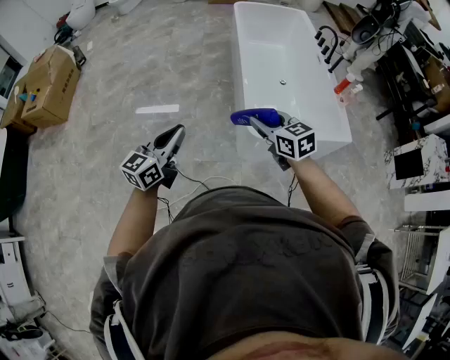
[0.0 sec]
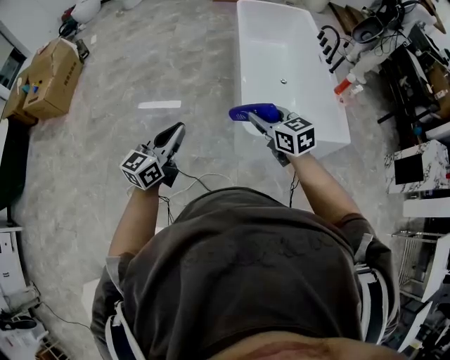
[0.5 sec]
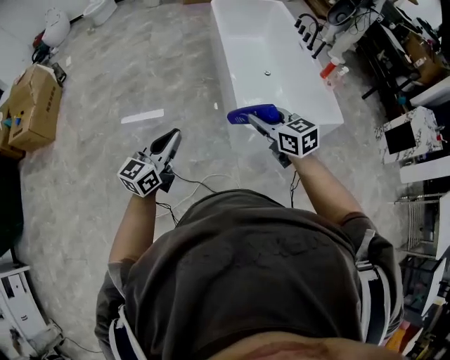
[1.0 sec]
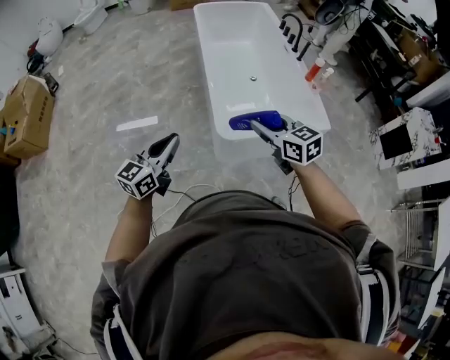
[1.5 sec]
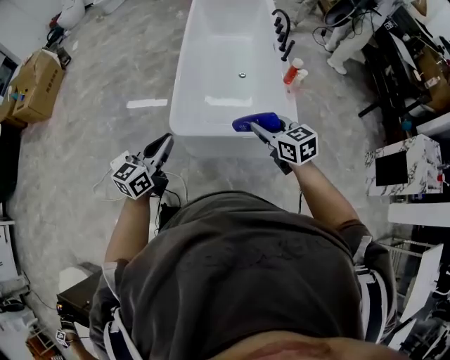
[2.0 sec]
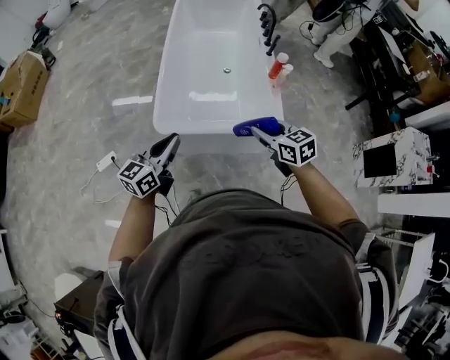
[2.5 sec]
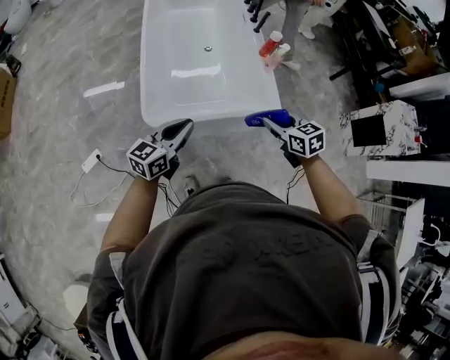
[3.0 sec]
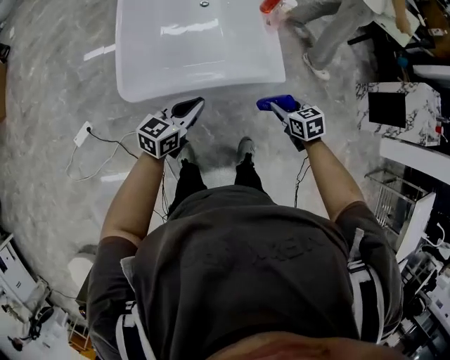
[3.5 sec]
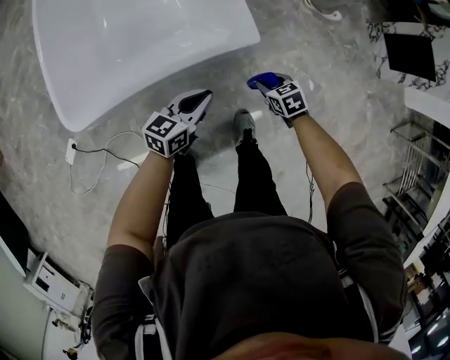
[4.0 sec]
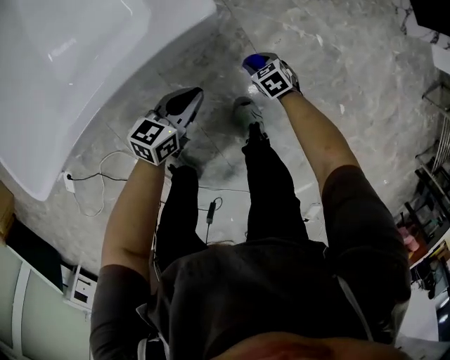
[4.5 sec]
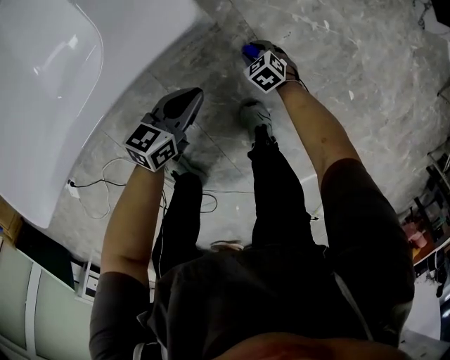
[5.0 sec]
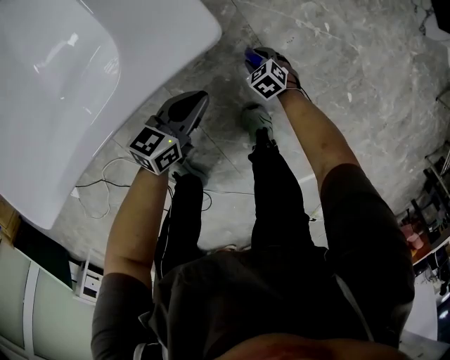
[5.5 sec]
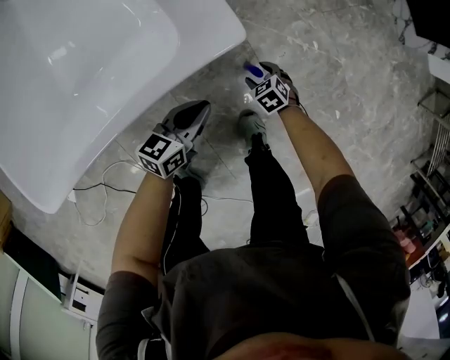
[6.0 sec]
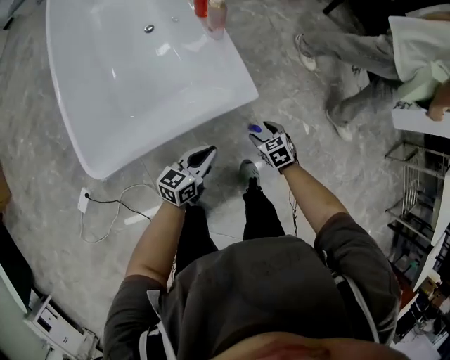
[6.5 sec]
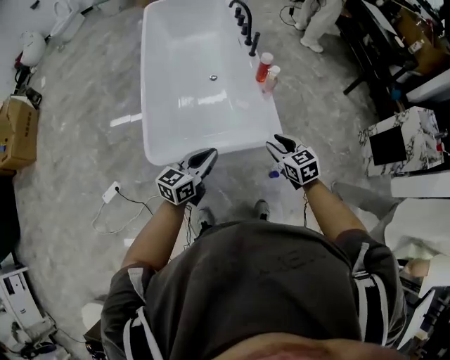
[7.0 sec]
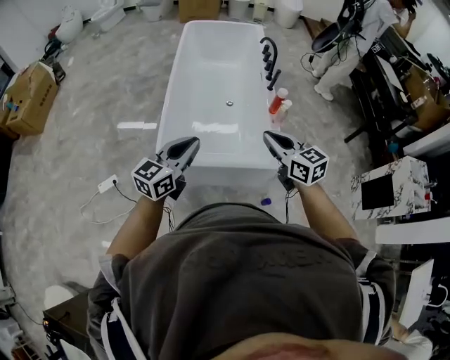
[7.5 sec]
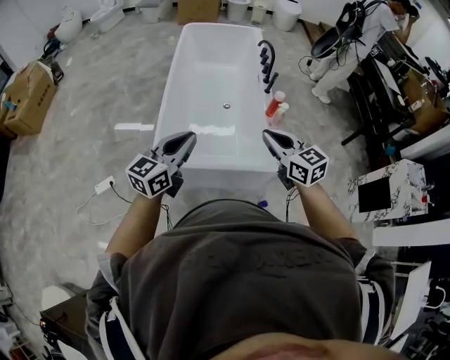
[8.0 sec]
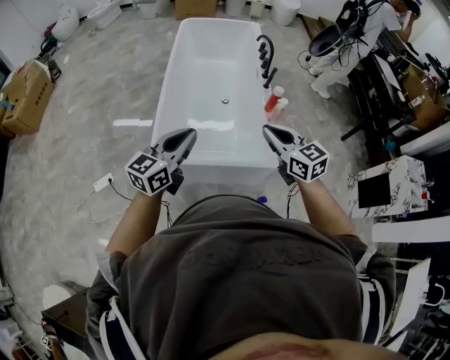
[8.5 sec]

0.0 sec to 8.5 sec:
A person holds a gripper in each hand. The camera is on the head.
0.0 sec to 2.0 sec: Both grippers are carried to the right, about 50 cm.
2.0 sec to 4.0 sec: Both grippers travel together downward, some 50 cm. The right gripper angles its fingers downward, by some 30 degrees, while the left gripper swivels approximately 40 degrees.
4.0 sec to 6.5 sec: The right gripper moves approximately 40 cm downward and comes back, and opens. The left gripper reaches approximately 35 cm downward, then returns.
6.5 sec to 8.5 sec: Both grippers move upward, approximately 50 cm. The right gripper points its fingers approximately 40 degrees further upward, and closes up, while the left gripper rotates some 40 degrees.

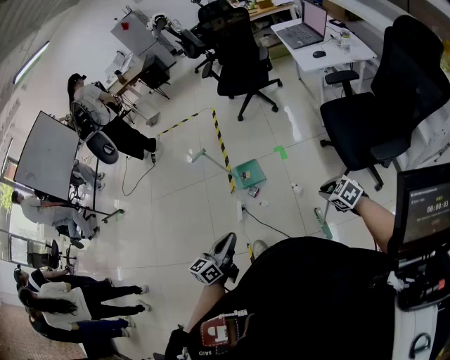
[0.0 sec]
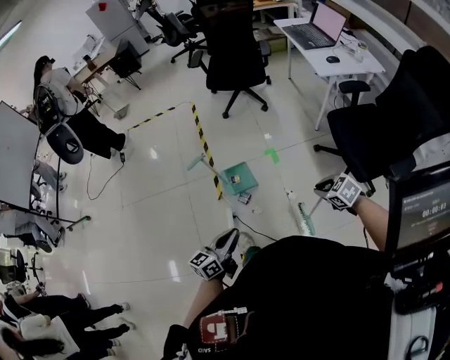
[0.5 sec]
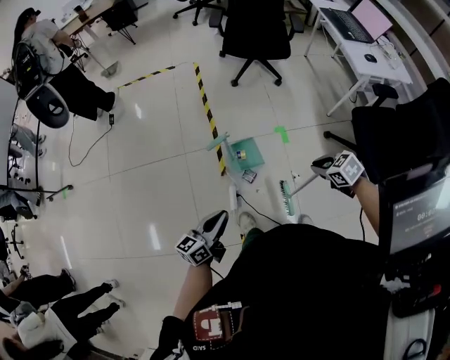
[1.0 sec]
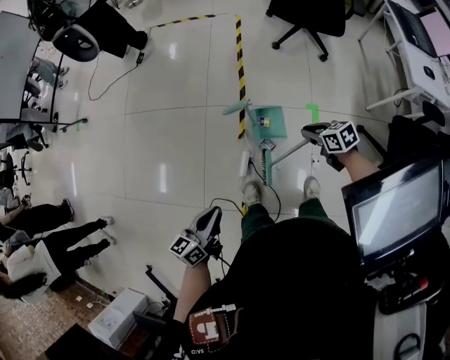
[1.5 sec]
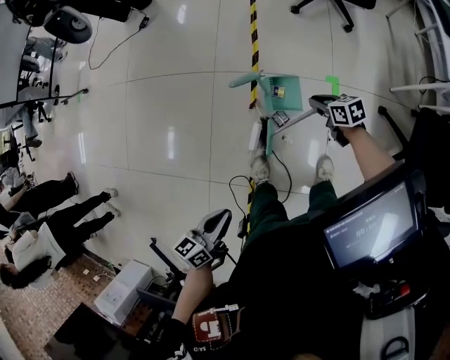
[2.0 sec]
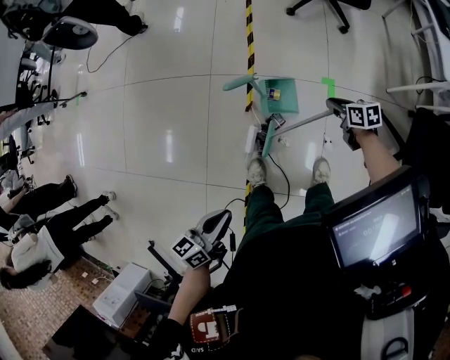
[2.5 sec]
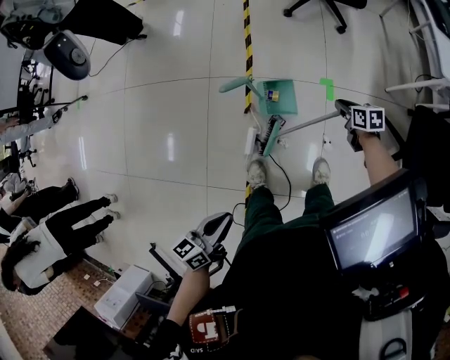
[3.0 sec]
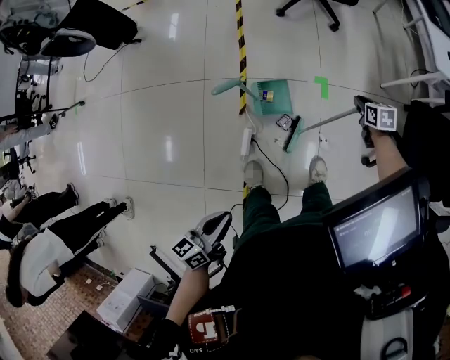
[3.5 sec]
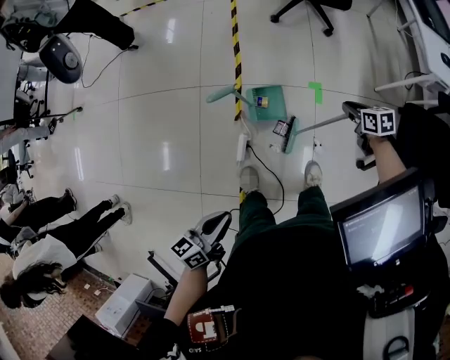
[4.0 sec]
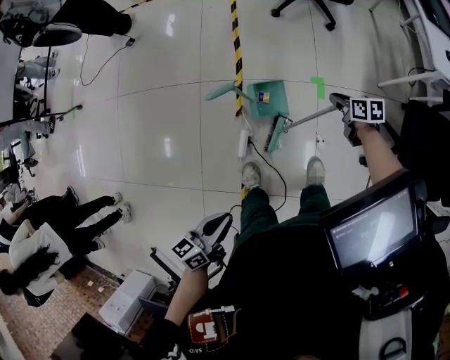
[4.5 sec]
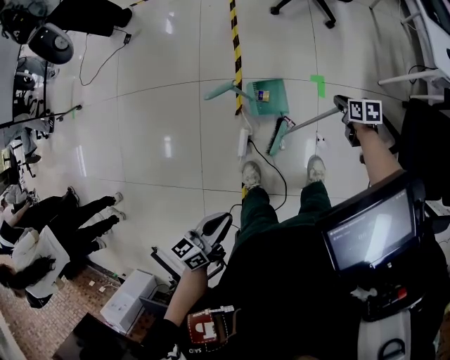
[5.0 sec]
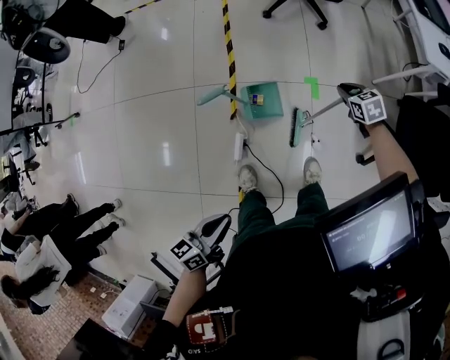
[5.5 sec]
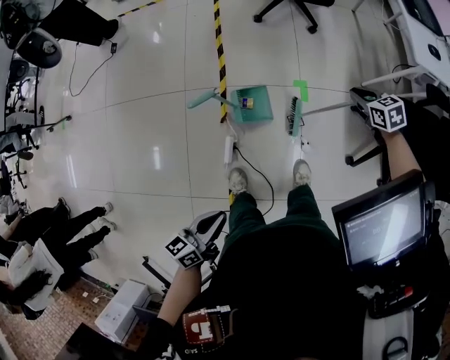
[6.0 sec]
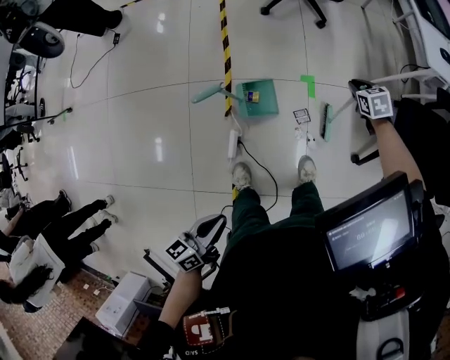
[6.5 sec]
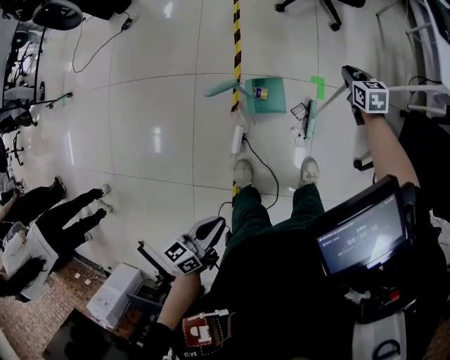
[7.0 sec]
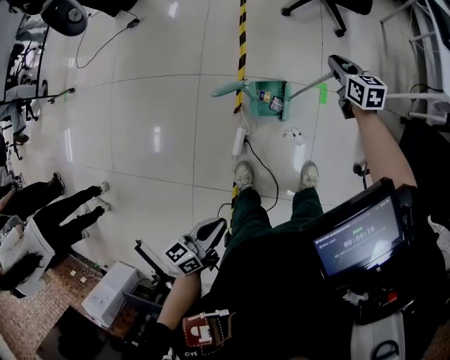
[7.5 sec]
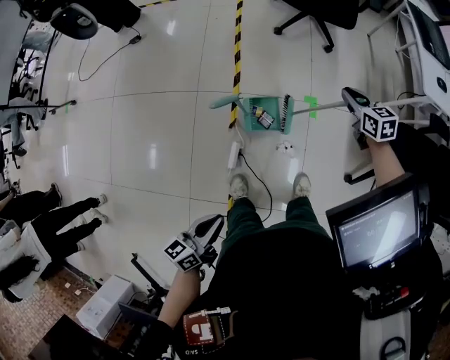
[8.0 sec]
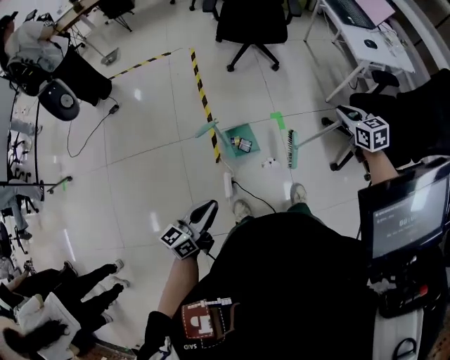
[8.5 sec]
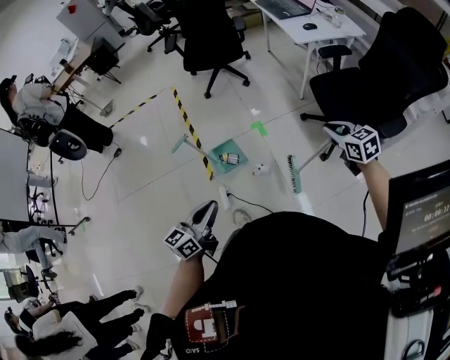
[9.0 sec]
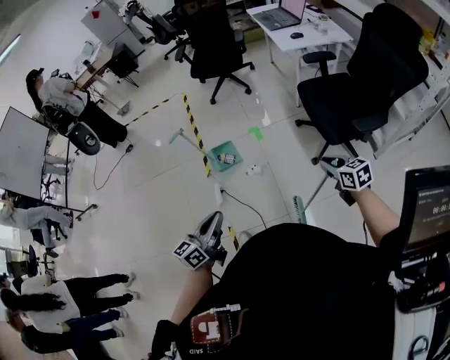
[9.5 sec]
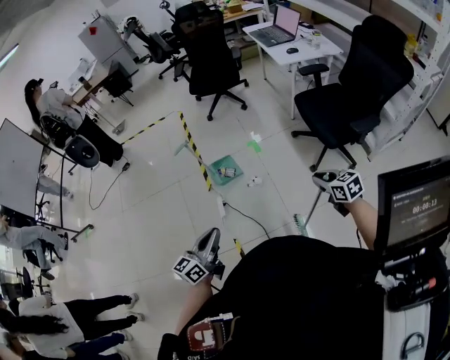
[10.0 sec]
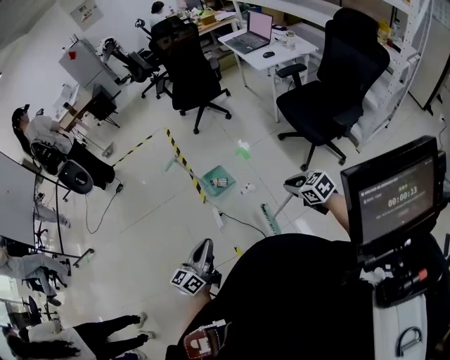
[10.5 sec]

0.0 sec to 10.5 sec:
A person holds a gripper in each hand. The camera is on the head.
0.0 sec to 2.0 sec: The right gripper shifts approximately 70 cm forward, to the left and downward, and swivels roughly 30 degrees, while the left gripper heads forward, to the left and downward, covering about 40 cm, and swivels about 30 degrees.
2.0 sec to 4.0 sec: The left gripper moves about 10 cm. Meanwhile the right gripper shifts by roughly 20 cm.
4.0 sec to 6.5 sec: The right gripper swings up and down, approximately 15 cm each way, with 2 reversals, and turns by approximately 20 degrees.
6.5 sec to 8.5 sec: The left gripper travels upward and to the left by about 10 cm, and changes its angle by approximately 20 degrees; the right gripper shifts roughly 30 cm upward and backward, and rotates some 20 degrees.
8.5 sec to 10.5 sec: The left gripper is displaced backward and to the right by about 35 cm; the right gripper goes roughly 50 cm backward.

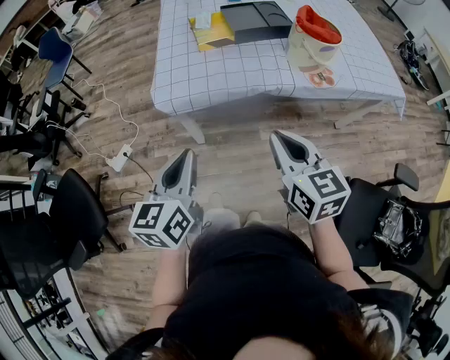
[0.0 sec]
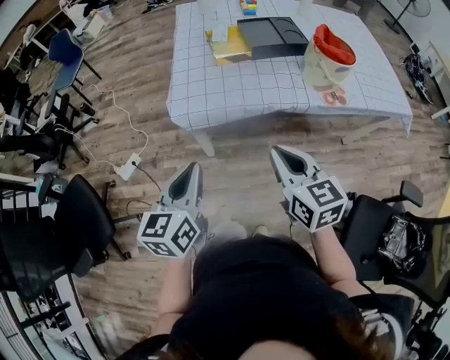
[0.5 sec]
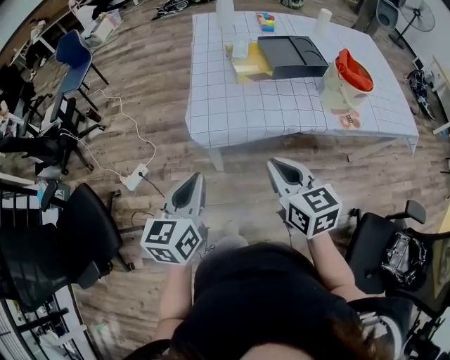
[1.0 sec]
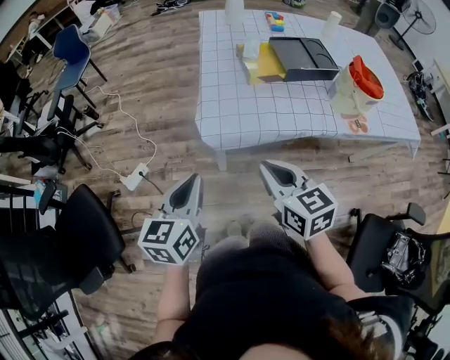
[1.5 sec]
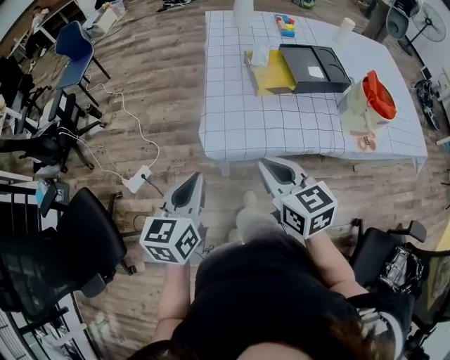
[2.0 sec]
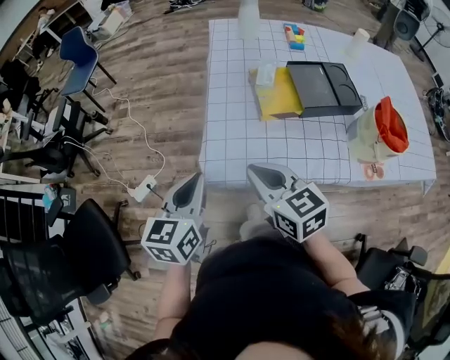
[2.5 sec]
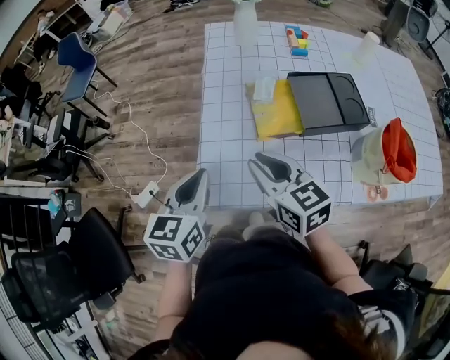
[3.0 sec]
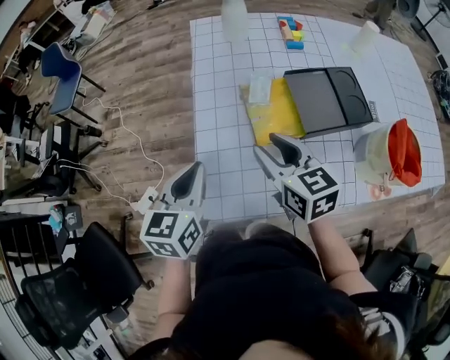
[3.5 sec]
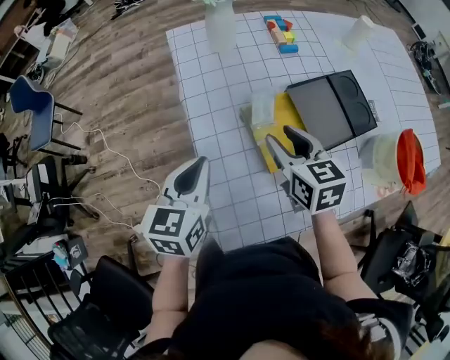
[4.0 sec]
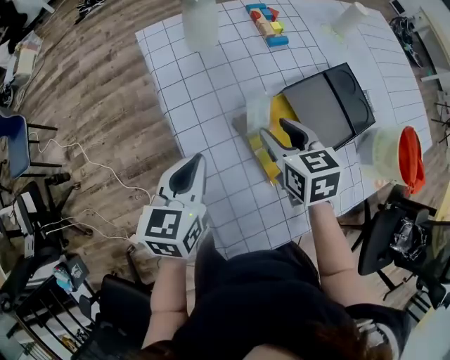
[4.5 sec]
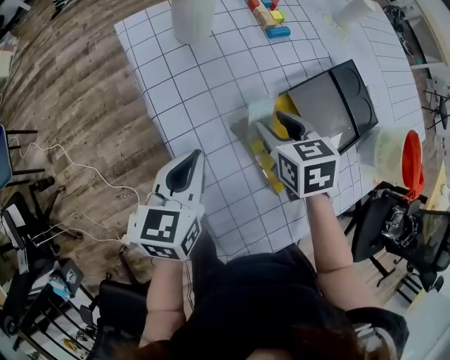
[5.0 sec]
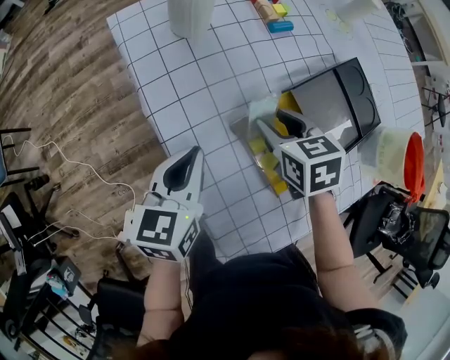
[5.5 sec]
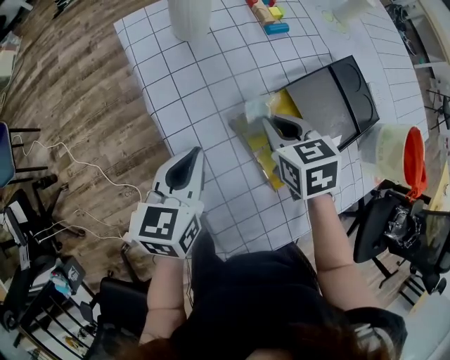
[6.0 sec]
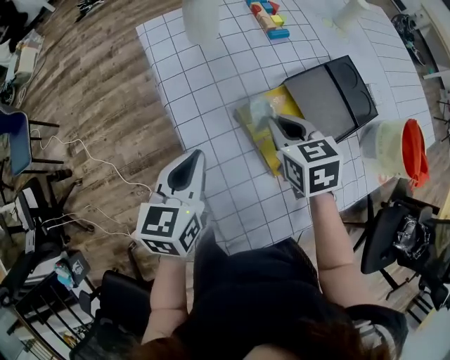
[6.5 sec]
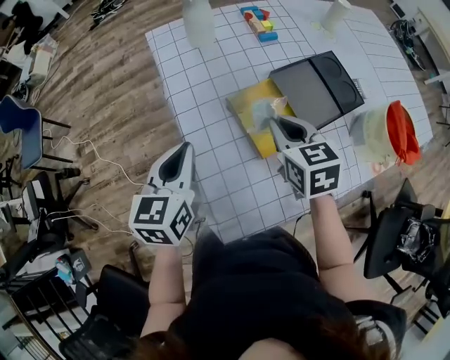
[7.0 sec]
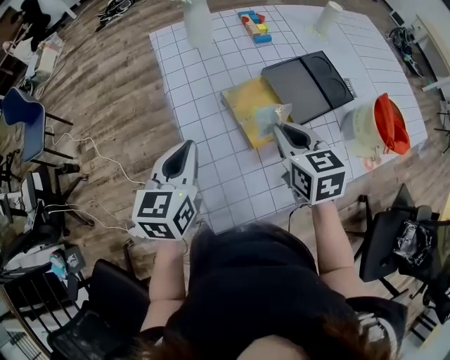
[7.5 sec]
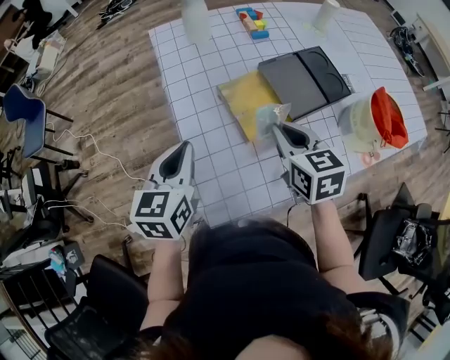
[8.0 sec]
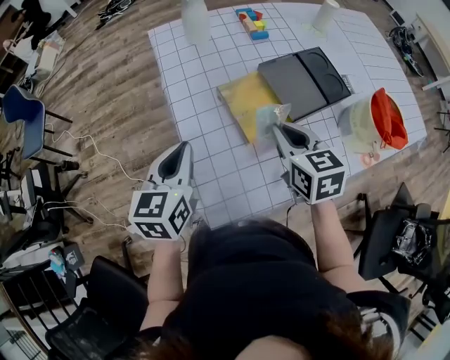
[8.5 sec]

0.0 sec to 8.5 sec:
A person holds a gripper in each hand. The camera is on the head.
0.0 sec to 2.0 sec: The left gripper is displaced forward and to the left by about 20 cm. The right gripper goes some 25 cm to the left and forward.
2.0 sec to 4.0 sec: Both grippers move forward, about 40 cm. The right gripper turns by some 20 degrees, and opens its fingers.
4.0 sec to 6.5 sec: The left gripper is displaced forward by about 5 cm; the right gripper closes.
6.5 sec to 8.5 sec: The left gripper goes about 10 cm backward and upward, while the right gripper heads backward, upward and to the right, covering some 15 cm.
